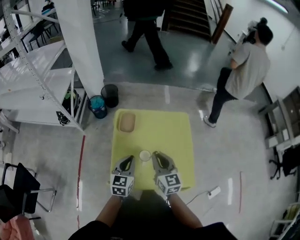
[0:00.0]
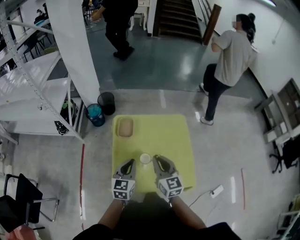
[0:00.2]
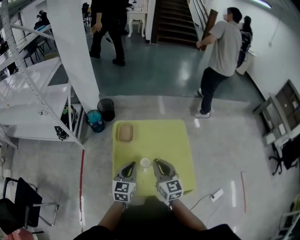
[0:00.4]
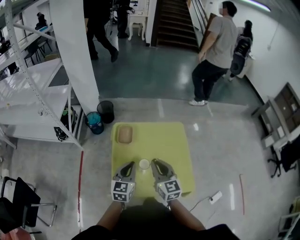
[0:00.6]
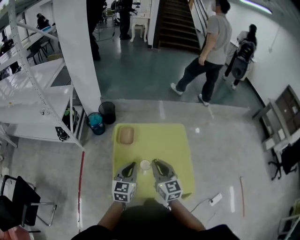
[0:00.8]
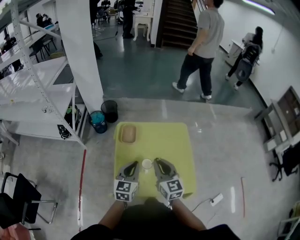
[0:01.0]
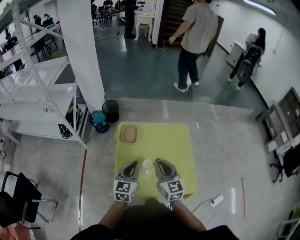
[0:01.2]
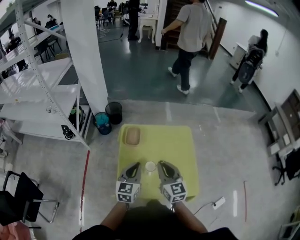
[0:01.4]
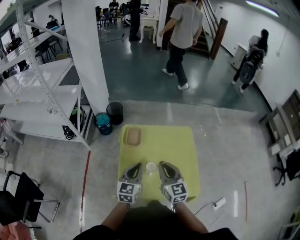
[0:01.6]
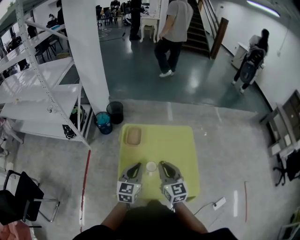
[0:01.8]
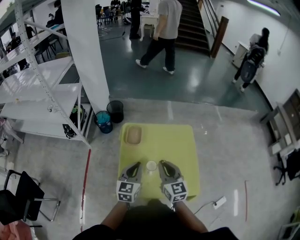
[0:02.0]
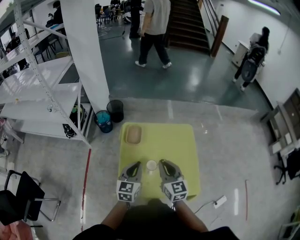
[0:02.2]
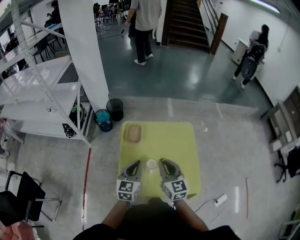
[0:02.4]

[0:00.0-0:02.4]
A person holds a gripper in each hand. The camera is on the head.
0:00.0 to 0:01.2: The left gripper changes place by about 5 cm.
0:01.2 to 0:02.4: Neither gripper changes place.

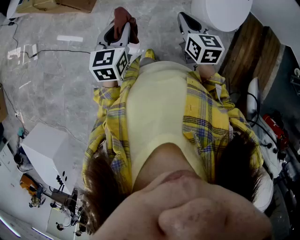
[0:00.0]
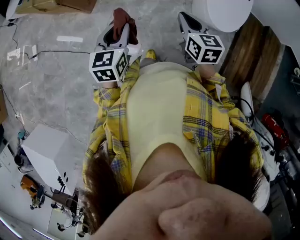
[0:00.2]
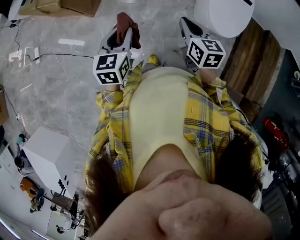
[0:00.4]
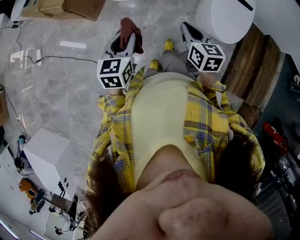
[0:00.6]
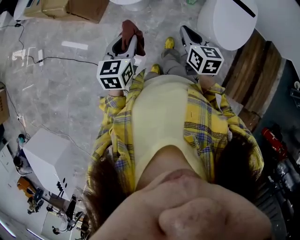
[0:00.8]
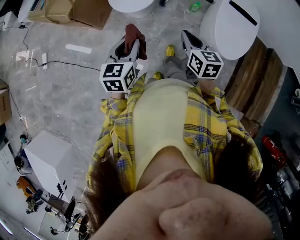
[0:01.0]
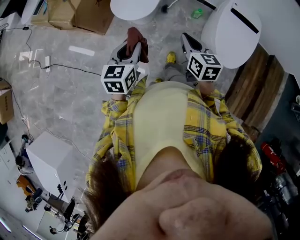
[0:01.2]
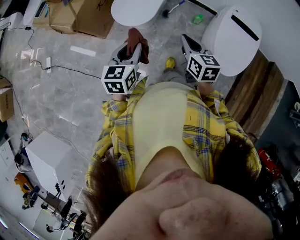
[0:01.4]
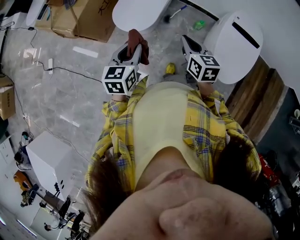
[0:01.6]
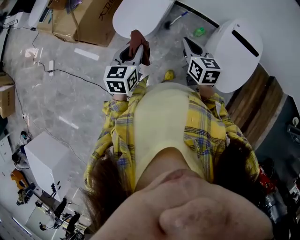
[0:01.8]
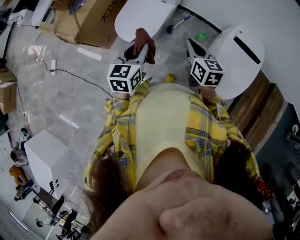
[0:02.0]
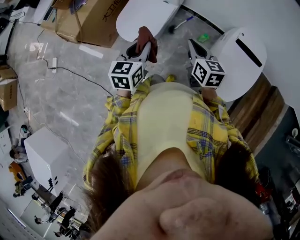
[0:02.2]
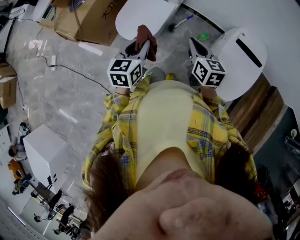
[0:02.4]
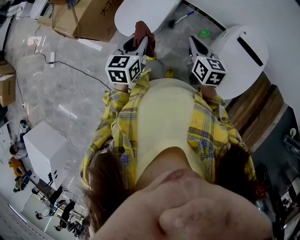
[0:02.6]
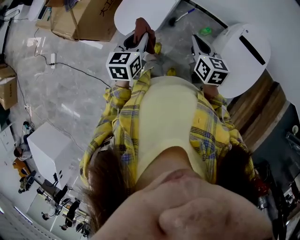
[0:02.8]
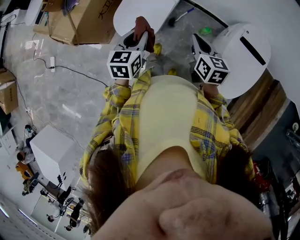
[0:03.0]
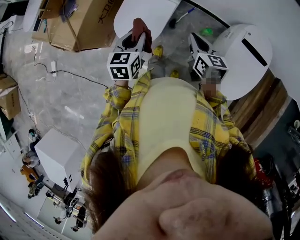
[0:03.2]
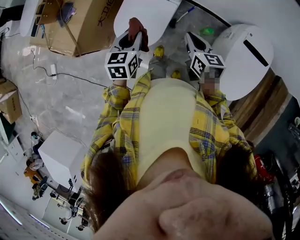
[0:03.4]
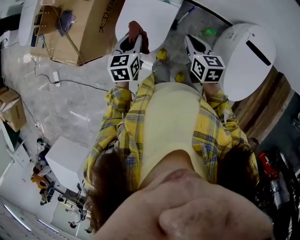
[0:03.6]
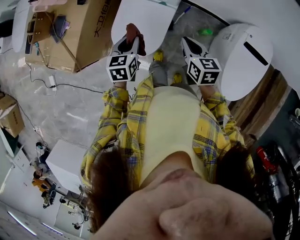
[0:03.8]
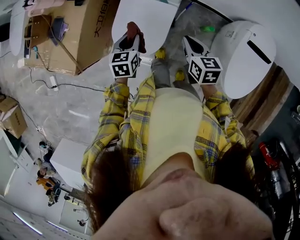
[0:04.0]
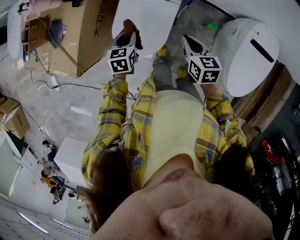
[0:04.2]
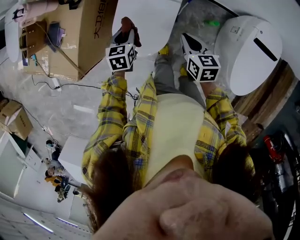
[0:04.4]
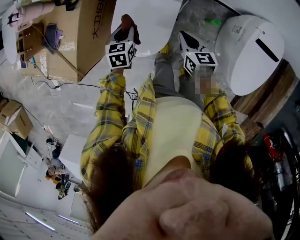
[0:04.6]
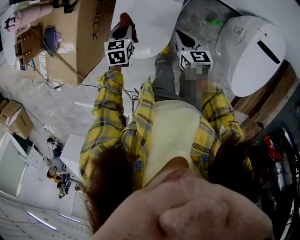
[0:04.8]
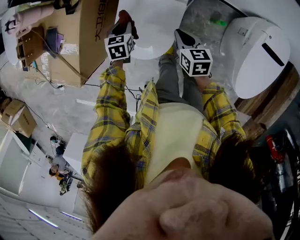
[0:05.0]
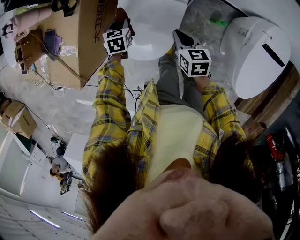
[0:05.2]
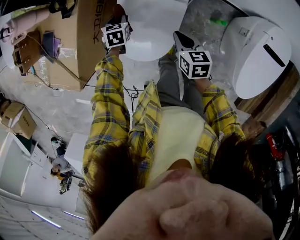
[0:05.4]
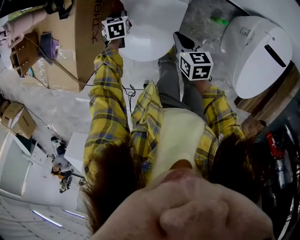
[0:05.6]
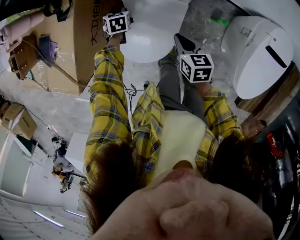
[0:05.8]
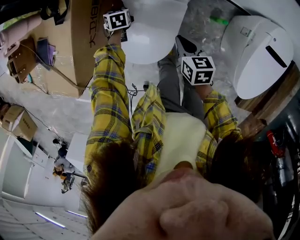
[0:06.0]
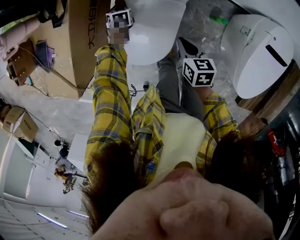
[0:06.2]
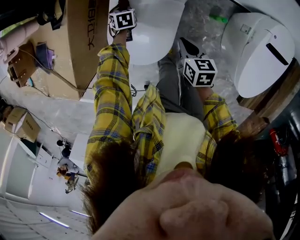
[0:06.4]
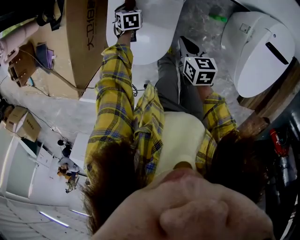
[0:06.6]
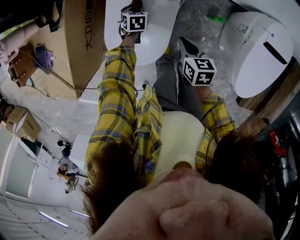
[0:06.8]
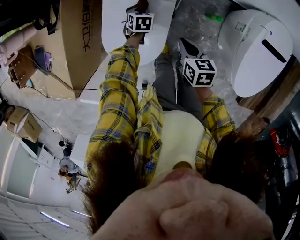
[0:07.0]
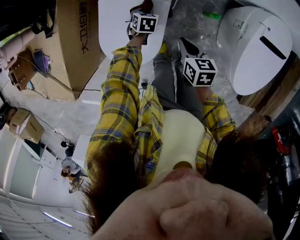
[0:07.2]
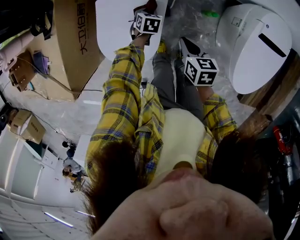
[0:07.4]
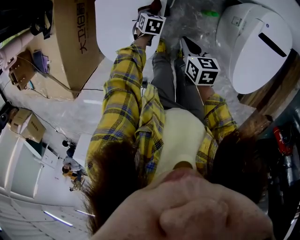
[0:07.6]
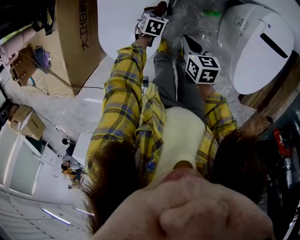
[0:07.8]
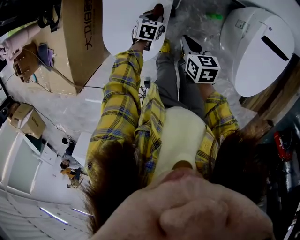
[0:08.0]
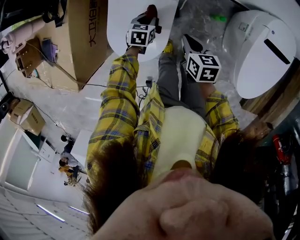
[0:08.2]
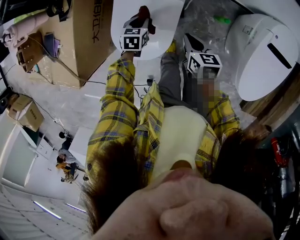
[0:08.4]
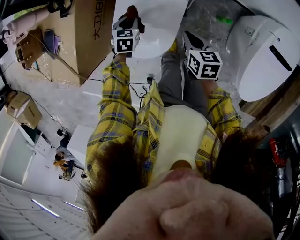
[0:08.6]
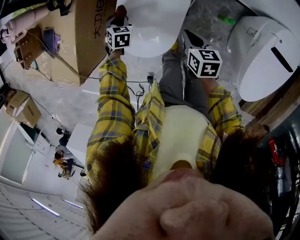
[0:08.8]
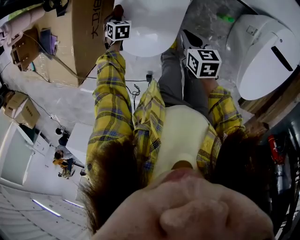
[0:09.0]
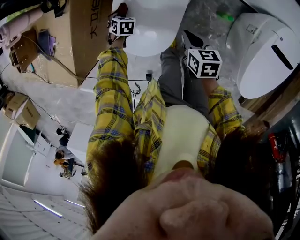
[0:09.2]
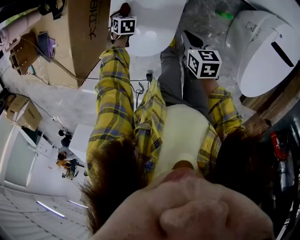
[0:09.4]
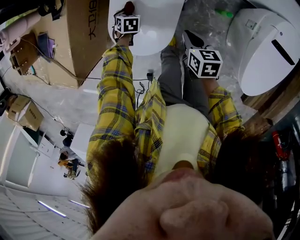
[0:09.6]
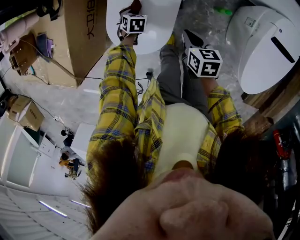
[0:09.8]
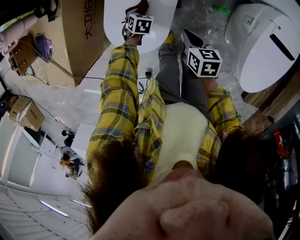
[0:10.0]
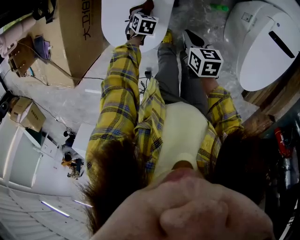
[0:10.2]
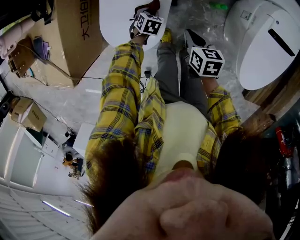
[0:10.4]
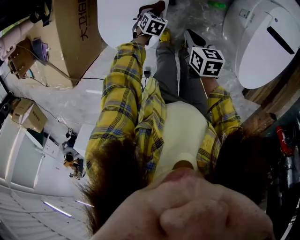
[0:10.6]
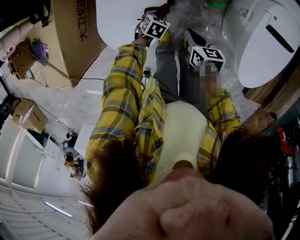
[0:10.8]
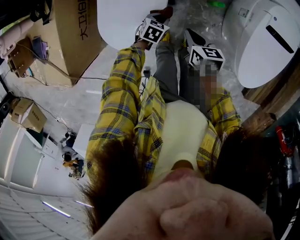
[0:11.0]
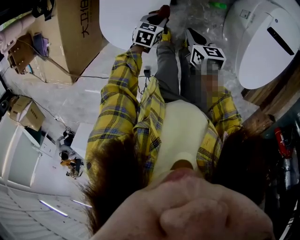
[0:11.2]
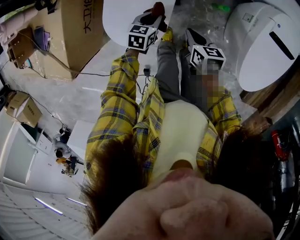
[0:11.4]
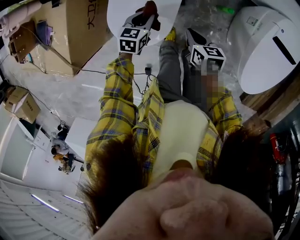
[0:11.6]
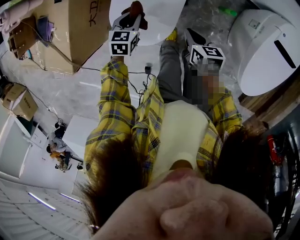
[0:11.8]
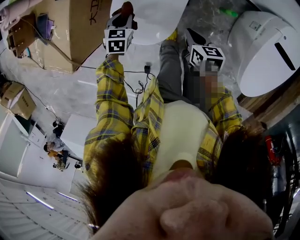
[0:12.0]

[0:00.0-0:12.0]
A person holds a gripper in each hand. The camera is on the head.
0:00.0 to 0:01.6: The grippers both shift forward by roughly 20 cm.
0:01.6 to 0:03.0: Both grippers move forward, approximately 15 cm.
0:03.0 to 0:04.4: The two grippers go about 25 cm forward, downward and to the left.
0:04.4 to 0:06.0: The right gripper is displaced downward by some 10 cm. Meanwhile the left gripper goes approximately 25 cm downward and forward, and rotates approximately 20 degrees.
0:06.0 to 0:07.6: The left gripper goes approximately 25 cm to the right and backward, and swivels about 20 degrees, while the right gripper shifts approximately 10 cm to the right.
0:07.6 to 0:09.0: The right gripper shifts by about 10 cm. The left gripper travels upward and back again, about 10 cm each way, and swivels approximately 20 degrees.
0:09.0 to 0:10.4: The right gripper shifts by some 10 cm, while the left gripper changes place by some 25 cm, and changes its angle by roughly 20 degrees.
0:10.4 to 0:12.0: The left gripper ends up approximately 20 cm from where it was. The right gripper ends up about 5 cm from where it was.

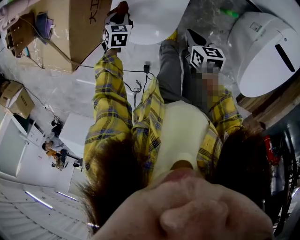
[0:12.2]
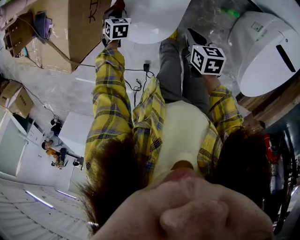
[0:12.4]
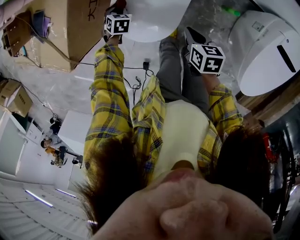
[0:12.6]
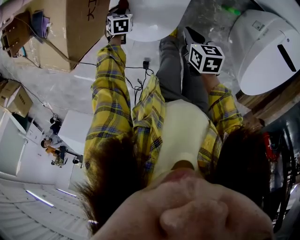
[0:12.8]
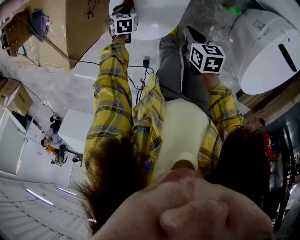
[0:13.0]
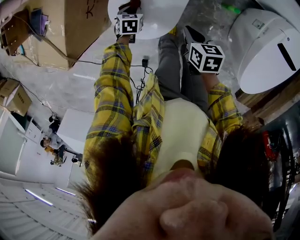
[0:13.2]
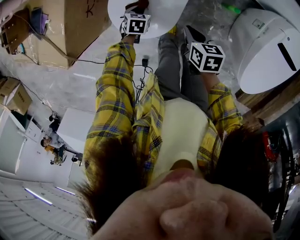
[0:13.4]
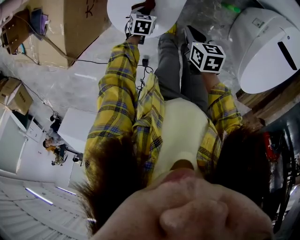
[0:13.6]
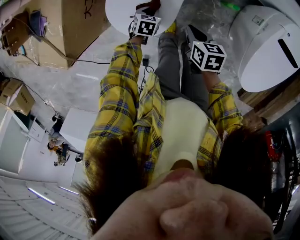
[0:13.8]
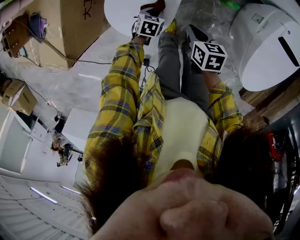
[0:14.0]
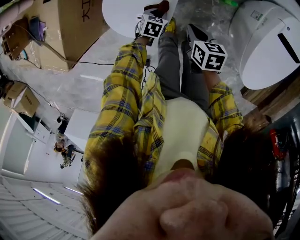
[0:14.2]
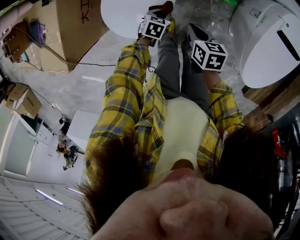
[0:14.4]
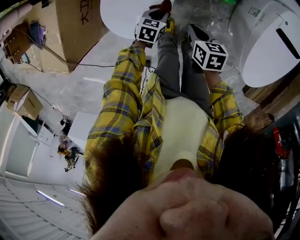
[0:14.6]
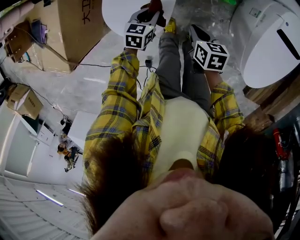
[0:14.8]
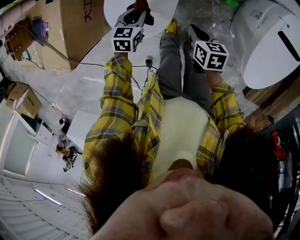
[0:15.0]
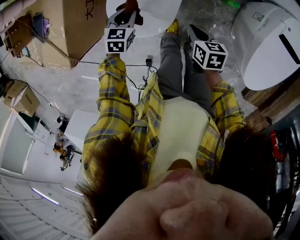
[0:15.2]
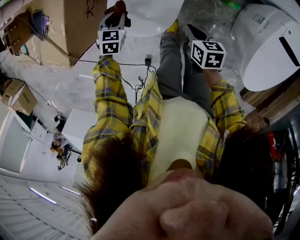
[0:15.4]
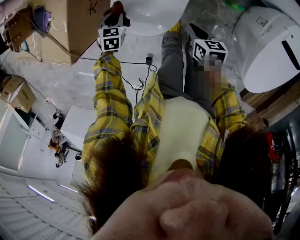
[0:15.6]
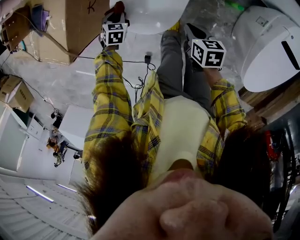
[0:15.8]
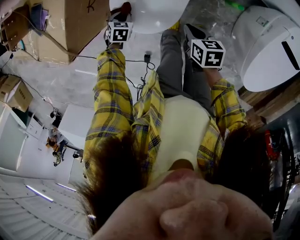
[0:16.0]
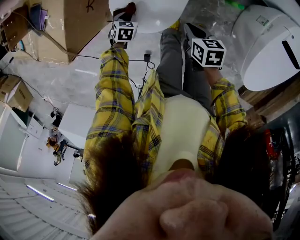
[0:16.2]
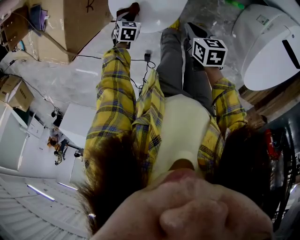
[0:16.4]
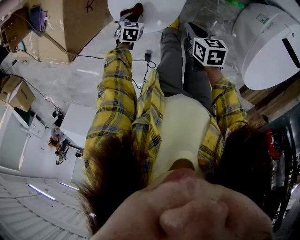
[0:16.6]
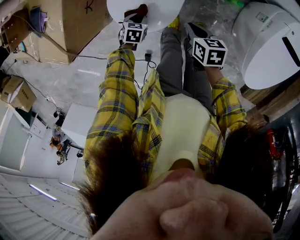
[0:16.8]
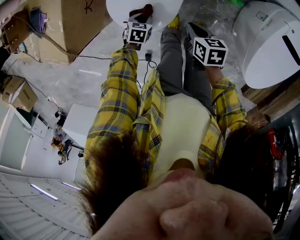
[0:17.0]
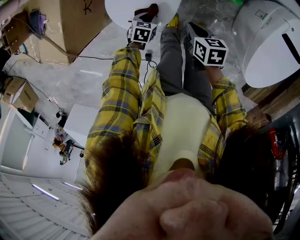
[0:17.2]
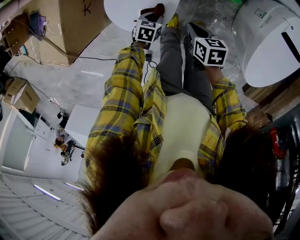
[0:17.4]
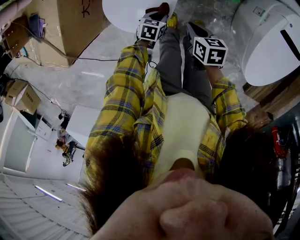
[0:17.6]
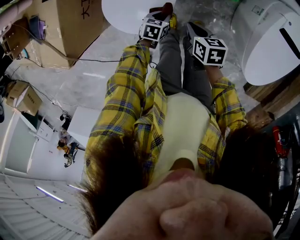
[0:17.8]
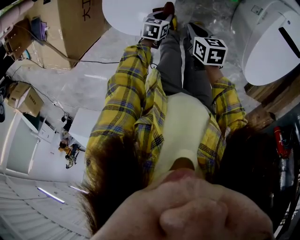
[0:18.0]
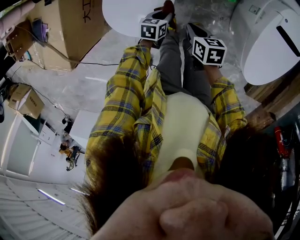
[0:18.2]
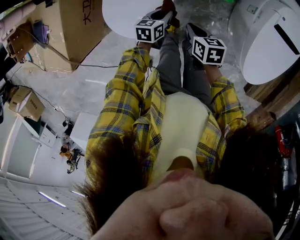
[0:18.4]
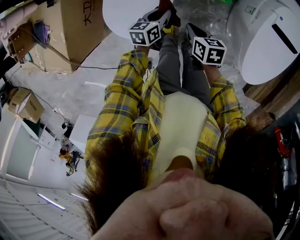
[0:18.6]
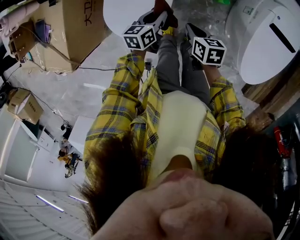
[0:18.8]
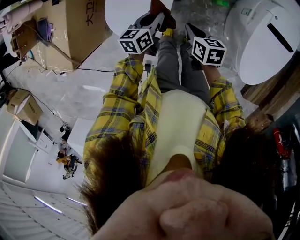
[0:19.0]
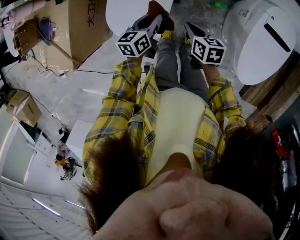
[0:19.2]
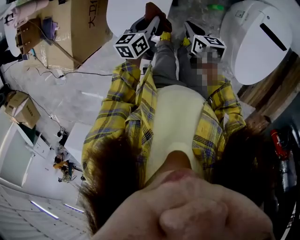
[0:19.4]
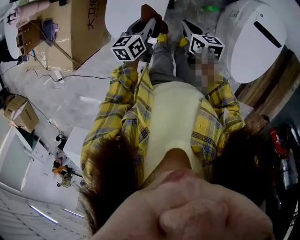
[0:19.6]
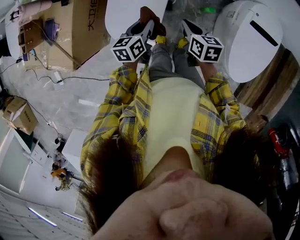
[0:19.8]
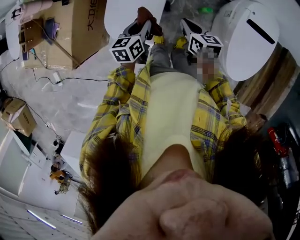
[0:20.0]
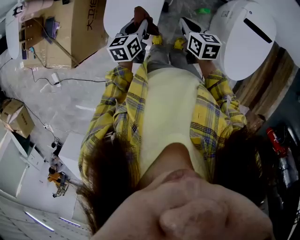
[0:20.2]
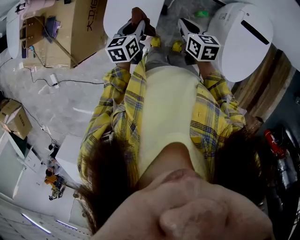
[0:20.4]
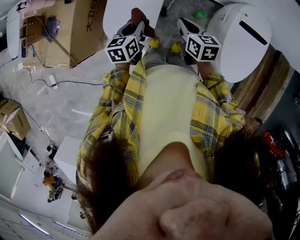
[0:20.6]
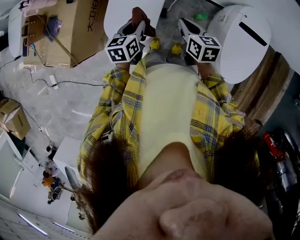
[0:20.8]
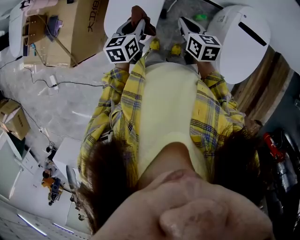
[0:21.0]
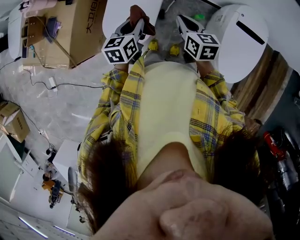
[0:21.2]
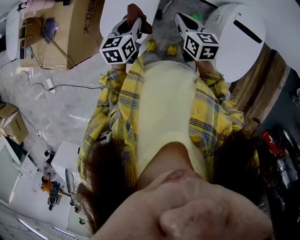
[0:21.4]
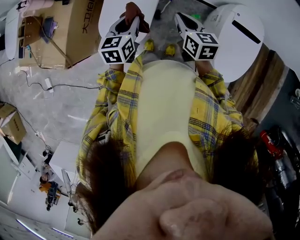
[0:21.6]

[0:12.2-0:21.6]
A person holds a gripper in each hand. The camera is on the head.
0:12.2 to 0:13.8: The left gripper moves approximately 15 cm.
0:13.8 to 0:15.4: The left gripper moves roughly 15 cm.
0:15.4 to 0:17.0: The left gripper travels downward by about 10 cm.
0:17.0 to 0:18.4: The left gripper moves to the right, upward and forward, roughly 20 cm, and turns by approximately 30 degrees.
0:18.4 to 0:20.0: Both grippers travel together upward, approximately 20 cm.
0:20.0 to 0:21.6: Both grippers move upward, about 10 cm.
